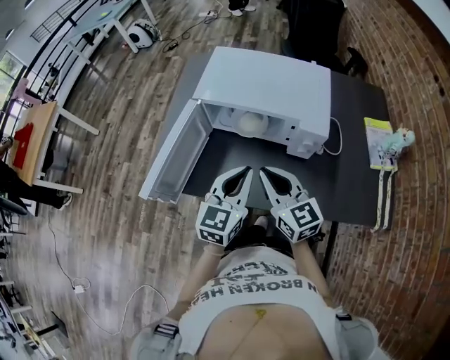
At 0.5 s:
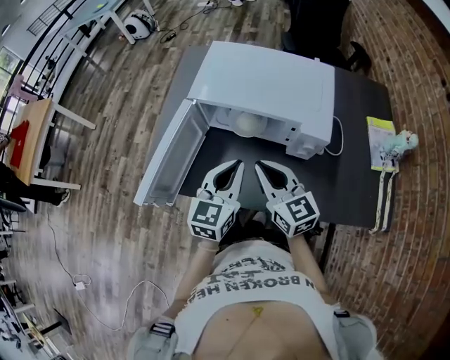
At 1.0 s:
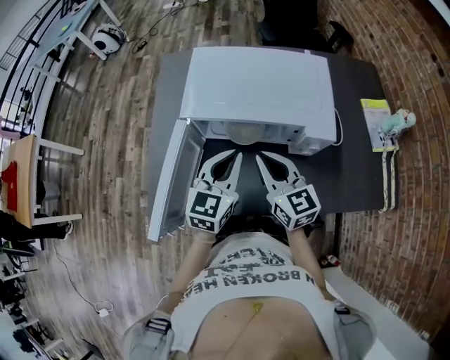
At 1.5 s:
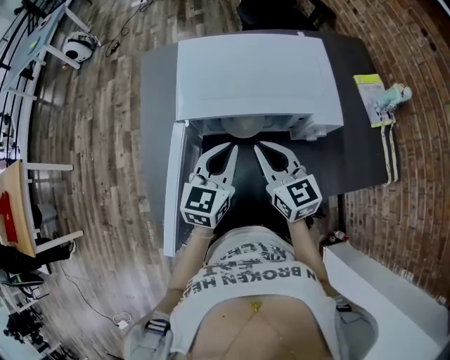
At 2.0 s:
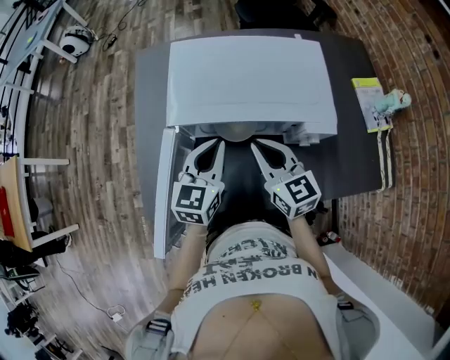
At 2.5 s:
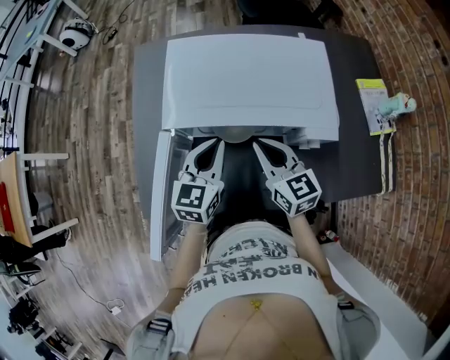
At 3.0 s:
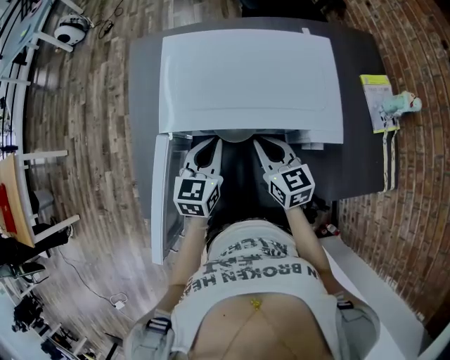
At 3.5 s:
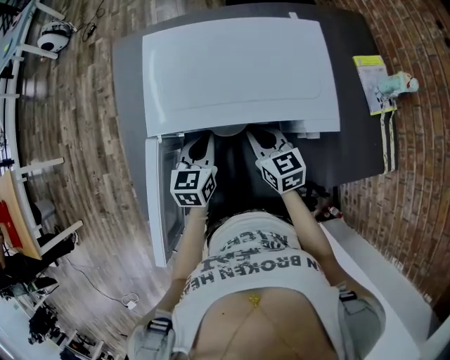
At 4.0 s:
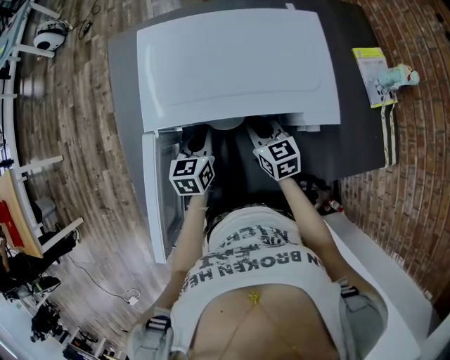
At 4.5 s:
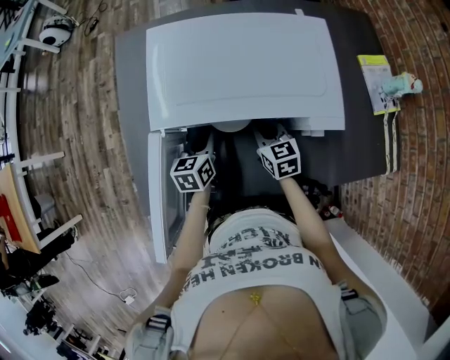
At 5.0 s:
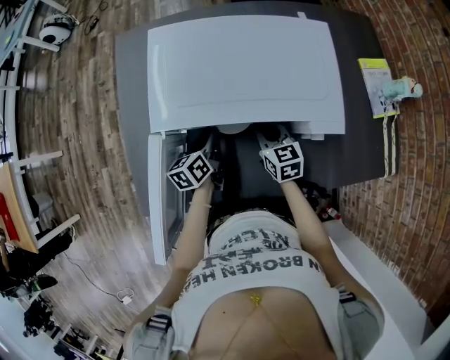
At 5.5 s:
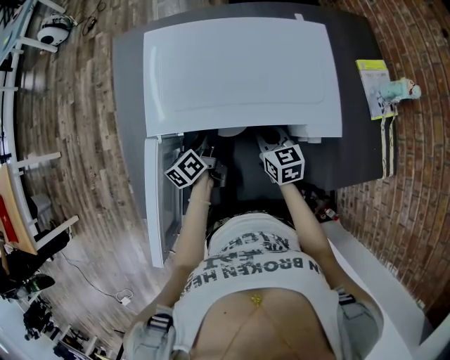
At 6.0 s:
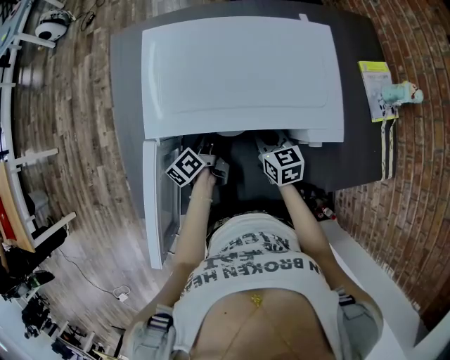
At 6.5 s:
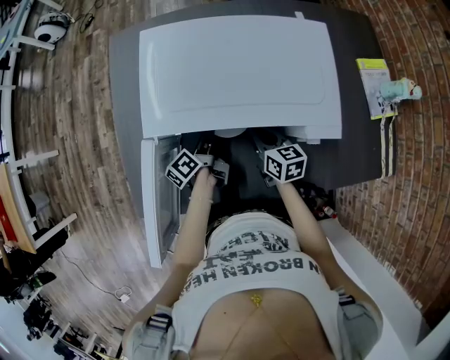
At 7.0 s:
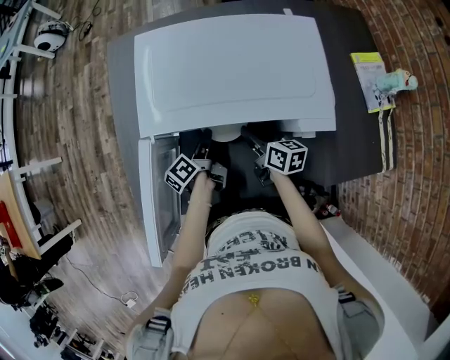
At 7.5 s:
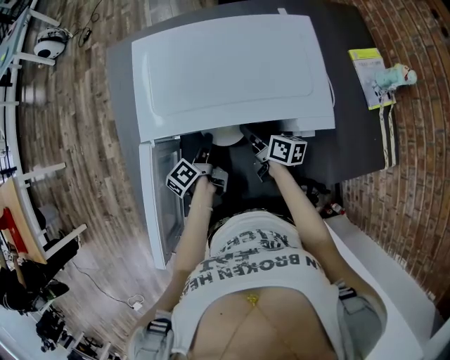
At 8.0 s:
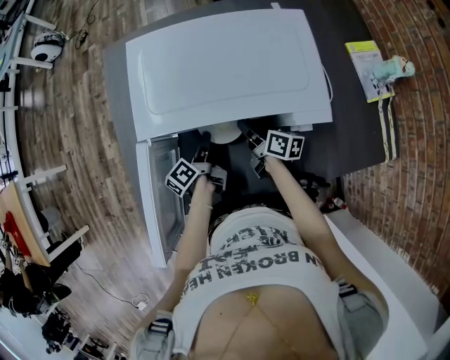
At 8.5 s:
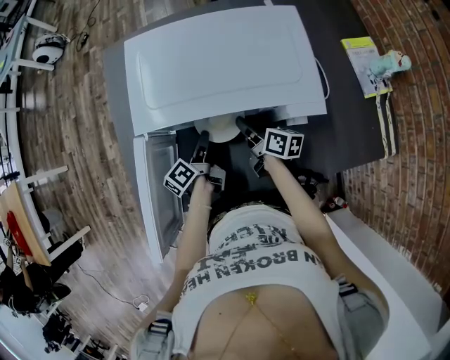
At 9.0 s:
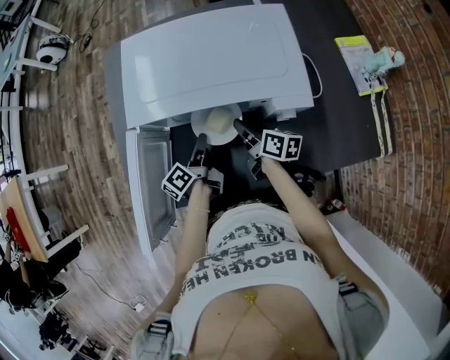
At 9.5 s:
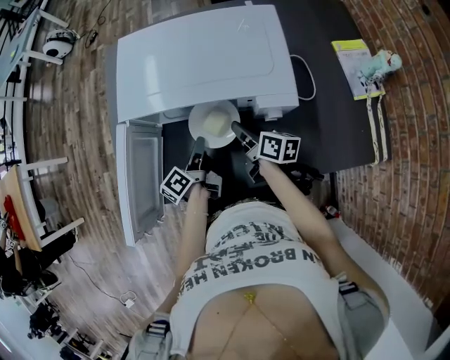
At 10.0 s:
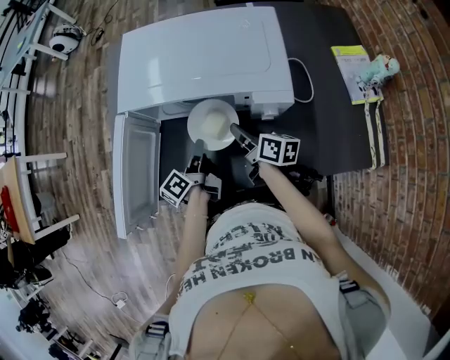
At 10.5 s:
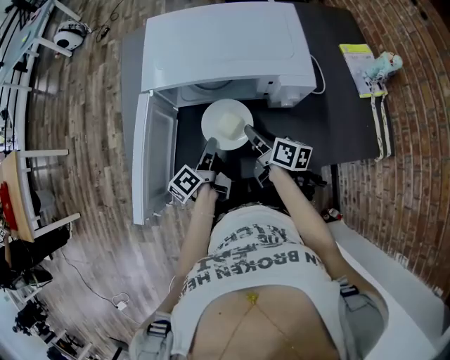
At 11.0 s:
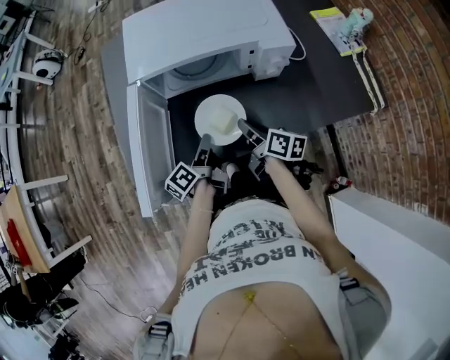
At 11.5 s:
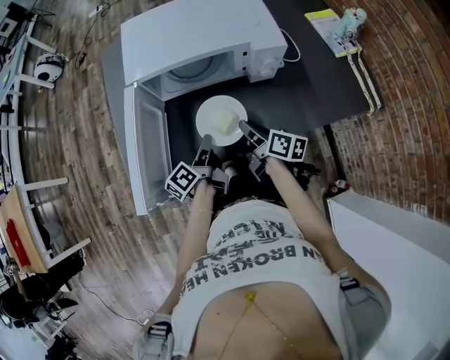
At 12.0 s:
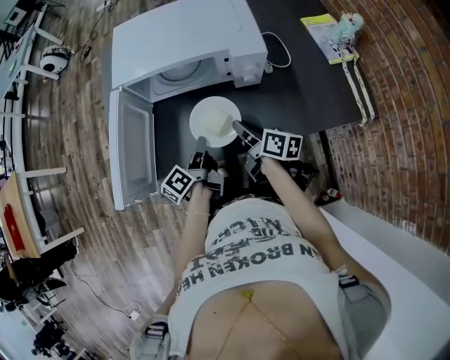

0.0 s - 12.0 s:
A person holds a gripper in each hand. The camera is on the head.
0.0 s - 2.0 s: The right gripper is displaced forward by roughly 15 cm. The left gripper goes some 20 cm forward and to the left.
2.0 s - 4.0 s: The two grippers go approximately 15 cm downward.
4.0 s - 6.0 s: The left gripper ends up approximately 5 cm from where it was, and twists roughly 50 degrees counterclockwise, seen from behind.
6.0 s - 8.0 s: The right gripper rotates around the line of its fingers by approximately 40 degrees, clockwise from behind.
8.0 s - 10.0 s: The two grippers go approximately 10 cm backward and upward.
10.0 s - 12.0 s: Both grippers travel together backward, some 15 cm.

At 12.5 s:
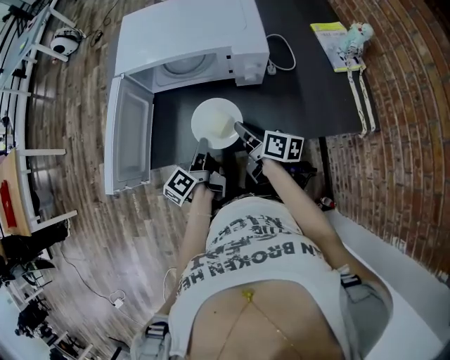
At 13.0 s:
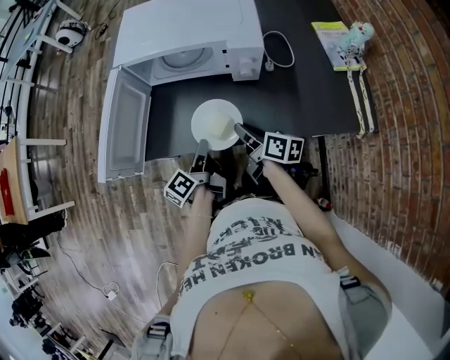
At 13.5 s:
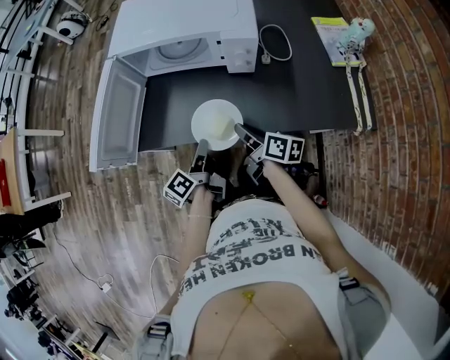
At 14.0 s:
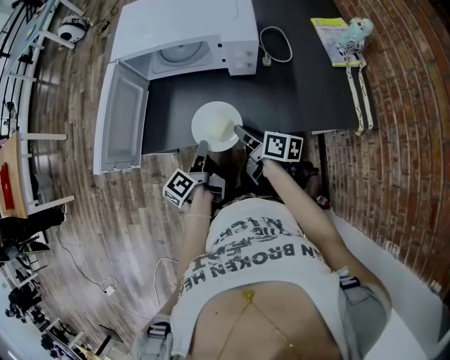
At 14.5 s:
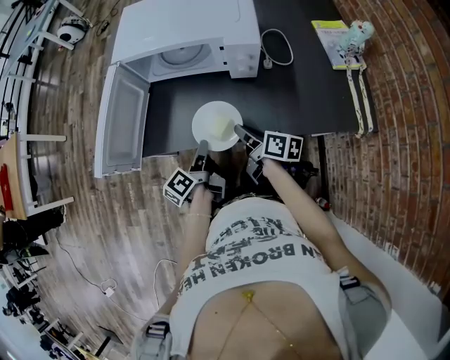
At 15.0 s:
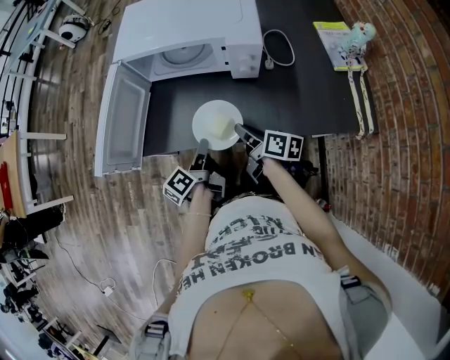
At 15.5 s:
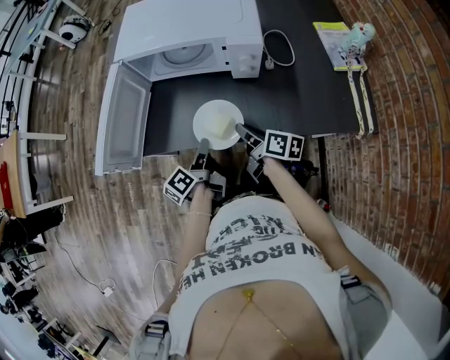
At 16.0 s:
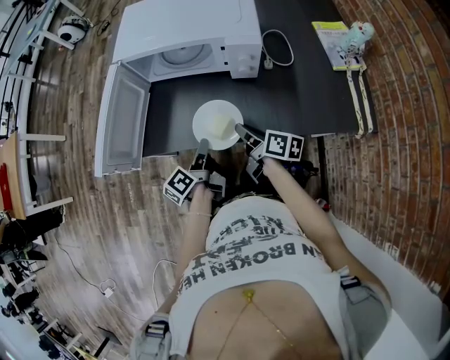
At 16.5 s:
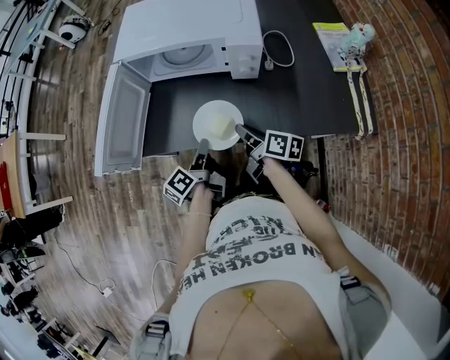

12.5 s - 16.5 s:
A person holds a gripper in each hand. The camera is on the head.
12.5 s - 14.5 s: The left gripper moves about 5 cm.
14.5 s - 16.5 s: Neither gripper changes place.

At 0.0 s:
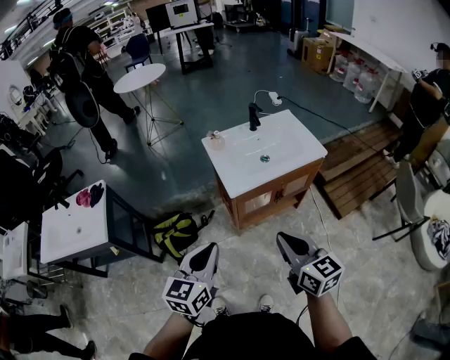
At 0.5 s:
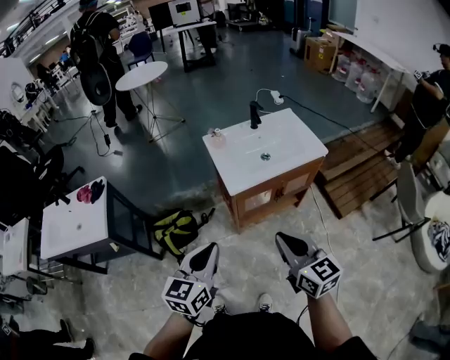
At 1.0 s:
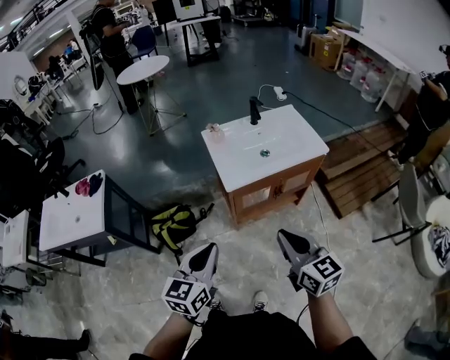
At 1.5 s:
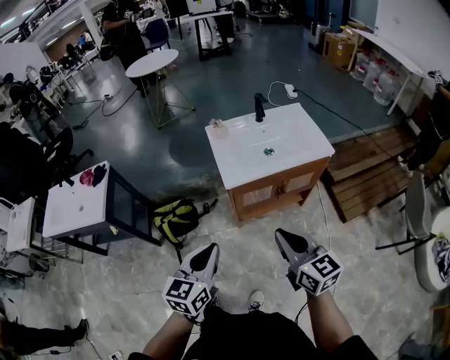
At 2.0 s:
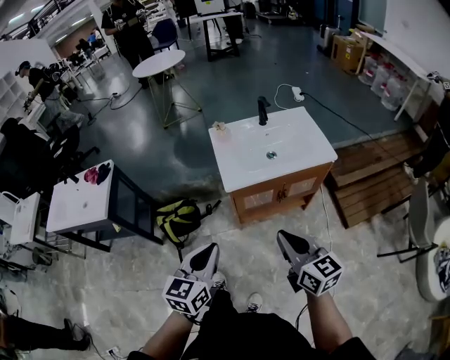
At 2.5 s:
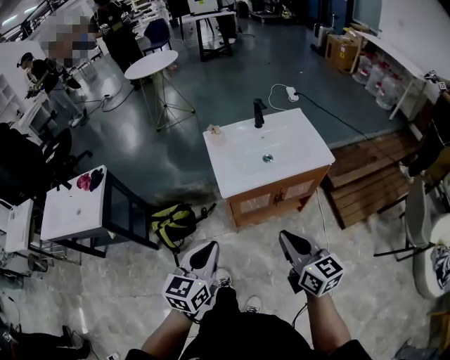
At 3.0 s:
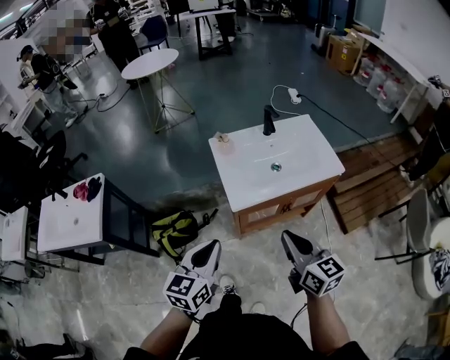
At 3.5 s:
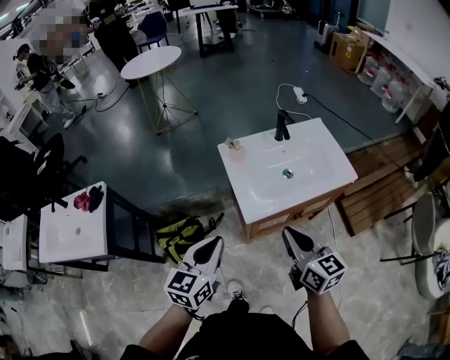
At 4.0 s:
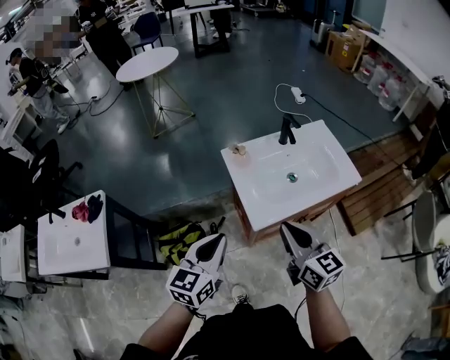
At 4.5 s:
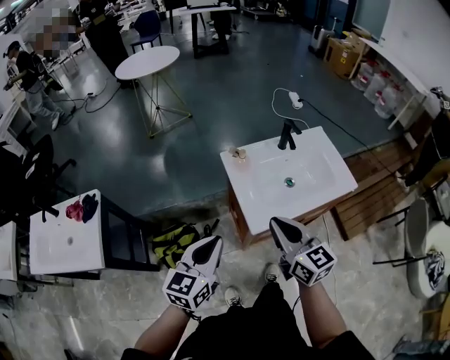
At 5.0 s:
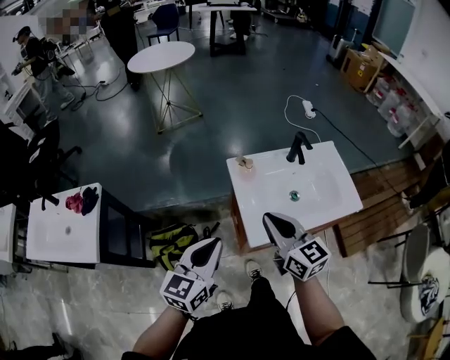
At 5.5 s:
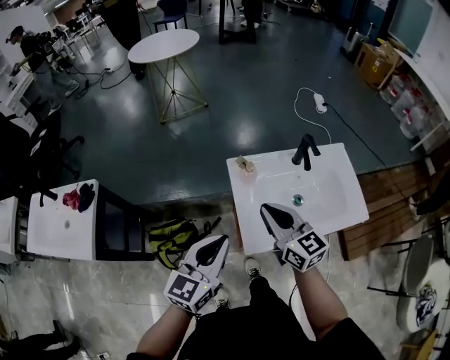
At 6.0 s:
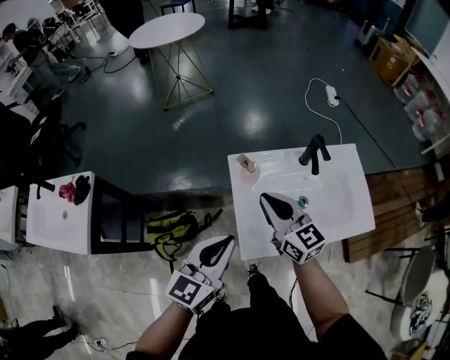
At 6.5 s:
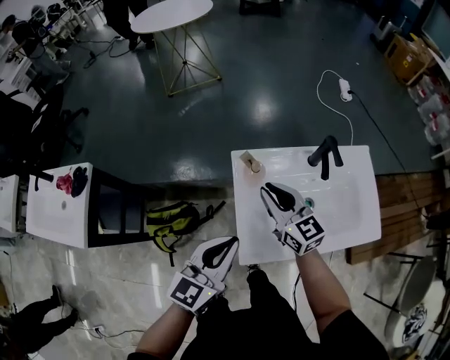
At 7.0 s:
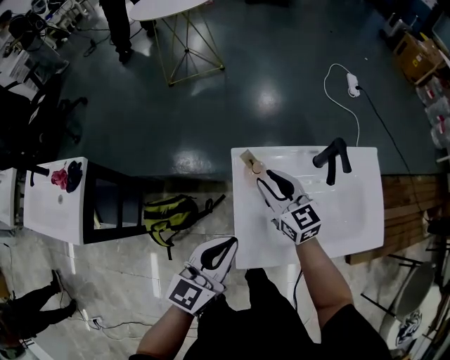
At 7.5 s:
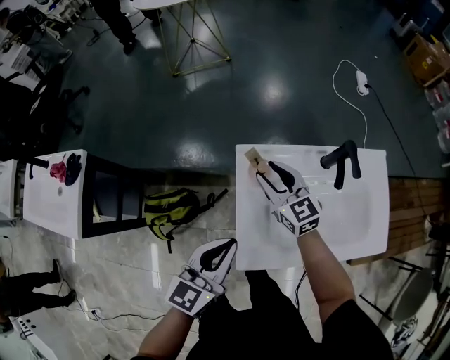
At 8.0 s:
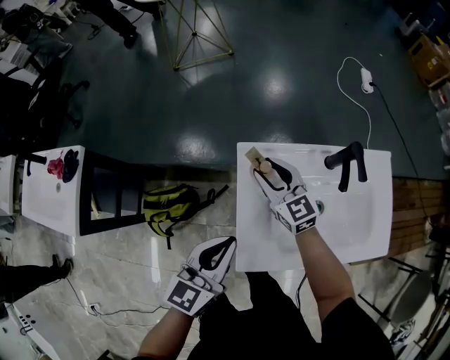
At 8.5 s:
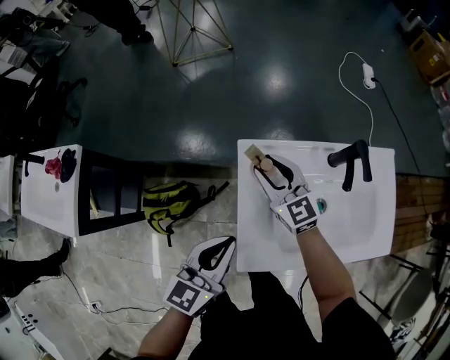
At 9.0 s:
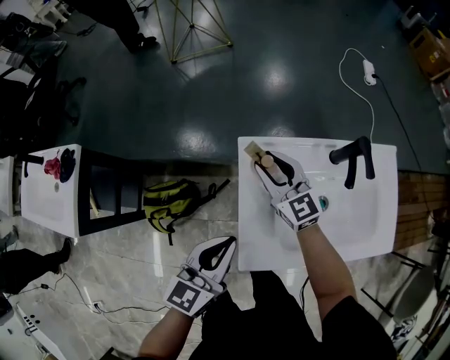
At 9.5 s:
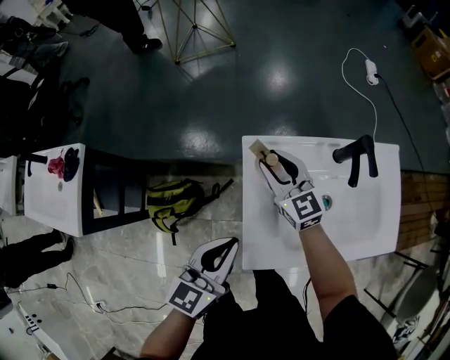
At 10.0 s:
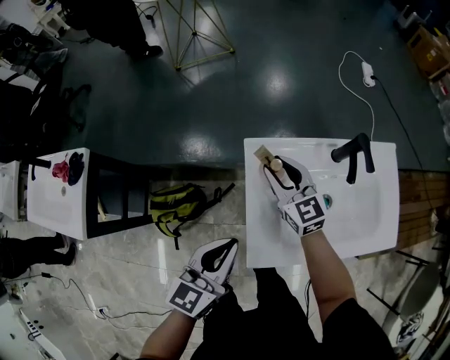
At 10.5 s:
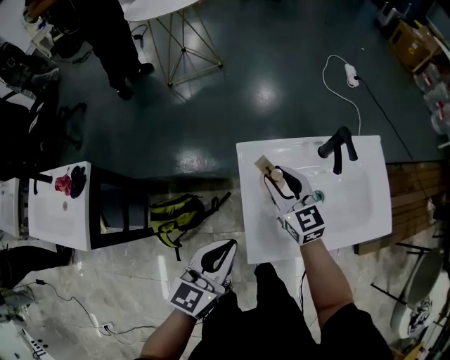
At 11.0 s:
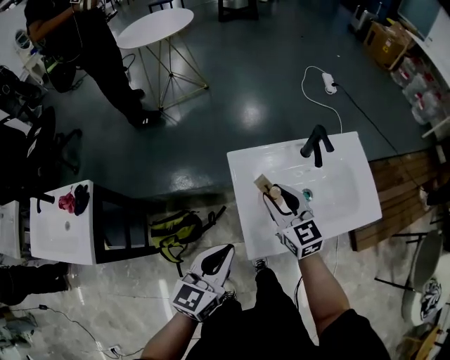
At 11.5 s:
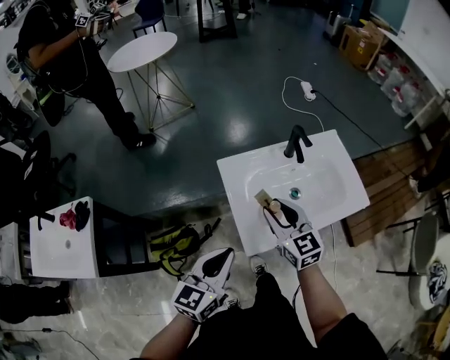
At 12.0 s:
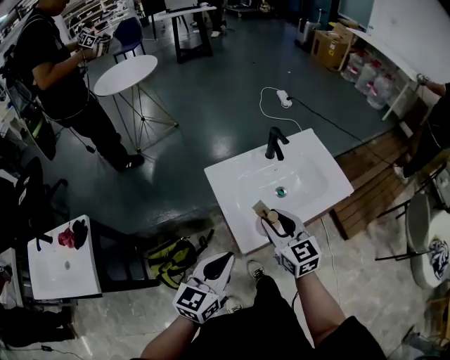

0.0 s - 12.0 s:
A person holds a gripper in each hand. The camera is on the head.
0.0 s - 2.0 s: Both grippers move to the right, some 10 cm.
2.0 s - 4.0 s: The two grippers go approximately 25 cm forward and to the left.
4.0 s - 6.0 s: The right gripper heads forward, covering about 25 cm; the left gripper is displaced forward and to the right by about 15 cm.
6.0 s - 8.0 s: The right gripper goes roughly 20 cm forward and downward, and opens, while the left gripper travels downward and forward by about 10 cm.
8.0 s - 10.0 s: There are only small adjustments of the grippers.
10.0 s - 12.0 s: The left gripper heads backward and upward, covering roughly 15 cm, and rotates about 20 degrees; the right gripper is displaced backward, upward and to the right by roughly 25 cm, and rotates roughly 20 degrees.
